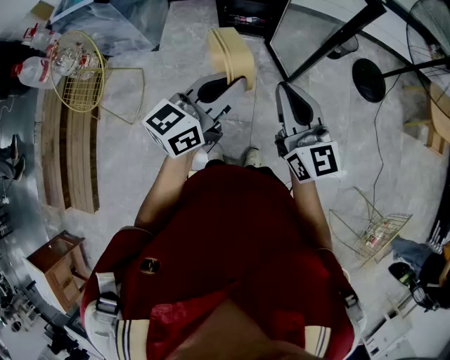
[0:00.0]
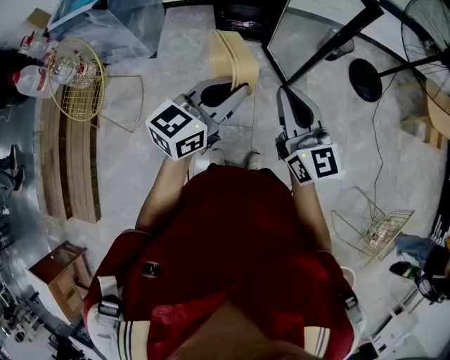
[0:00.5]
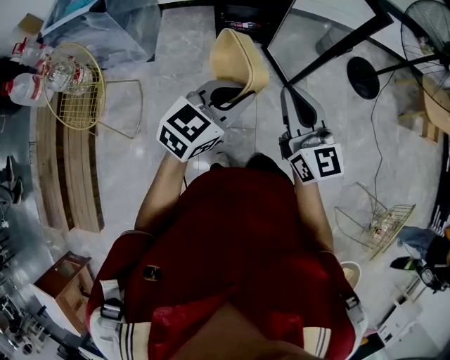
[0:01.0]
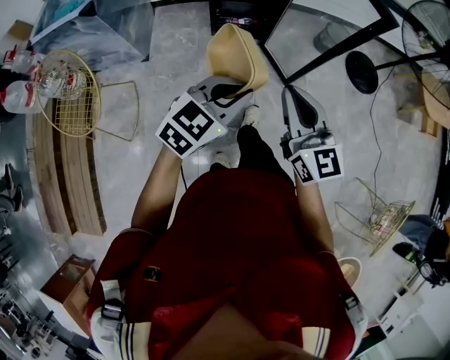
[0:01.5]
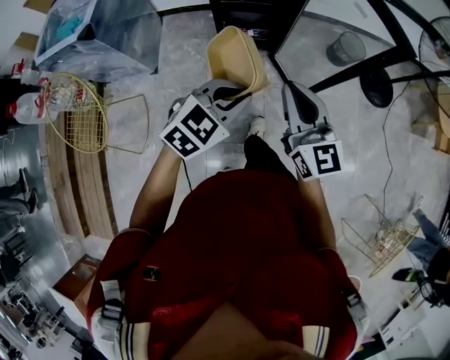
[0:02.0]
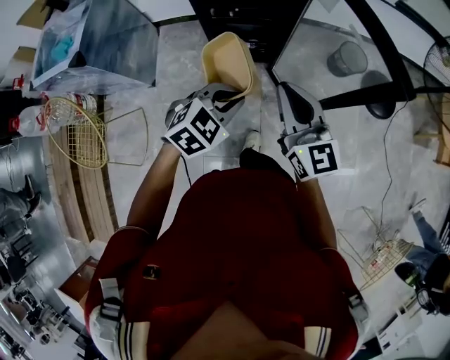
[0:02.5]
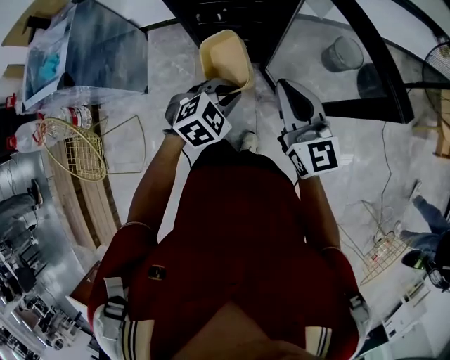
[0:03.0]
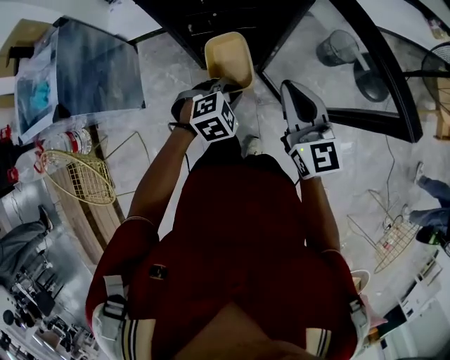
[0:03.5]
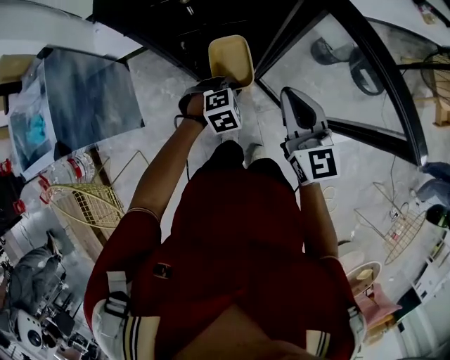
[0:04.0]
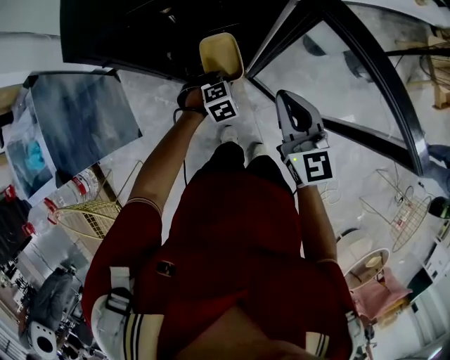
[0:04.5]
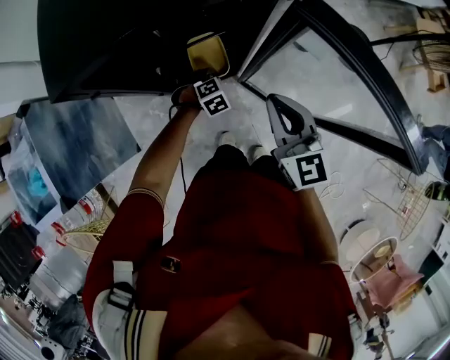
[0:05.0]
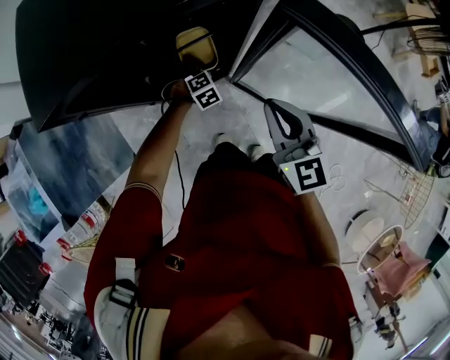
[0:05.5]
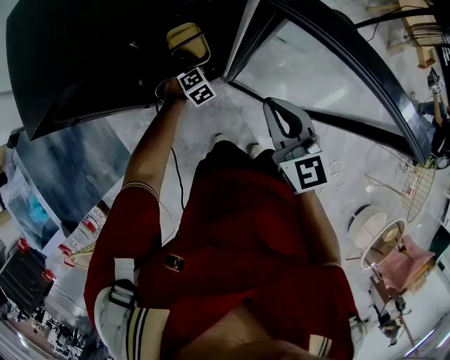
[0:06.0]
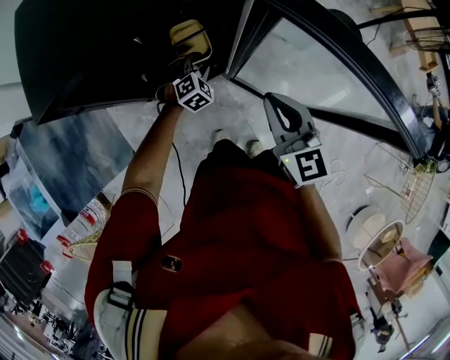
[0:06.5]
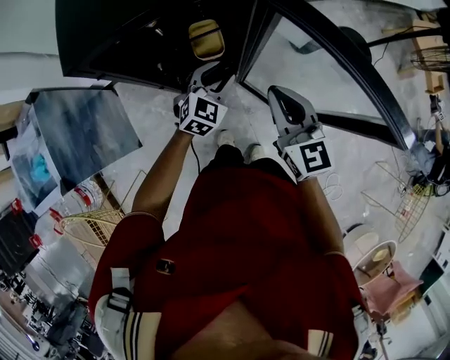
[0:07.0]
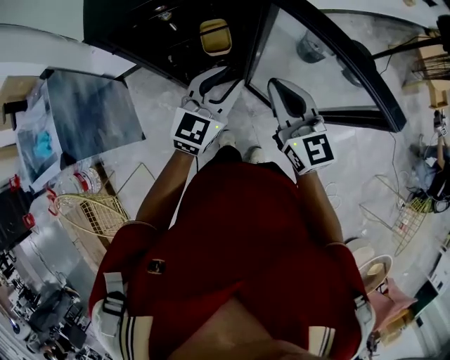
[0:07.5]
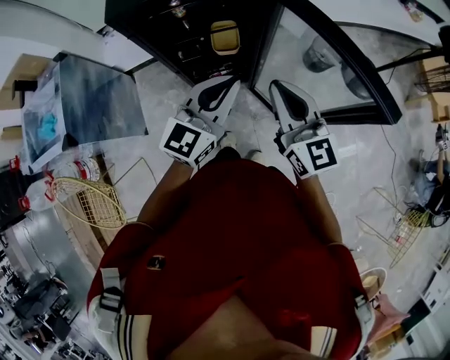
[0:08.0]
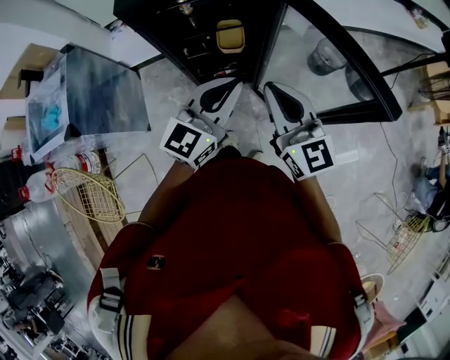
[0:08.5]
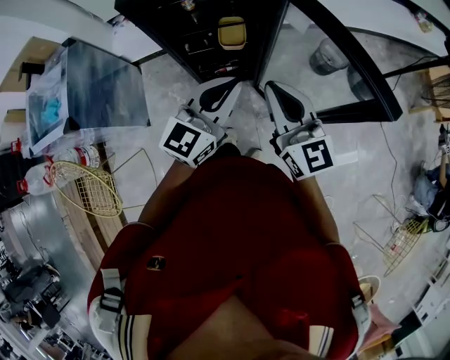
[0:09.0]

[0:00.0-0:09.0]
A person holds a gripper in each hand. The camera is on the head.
0:00.0 to 0:02.0: The right gripper shifts roughly 20 cm forward and to the left, while the left gripper goes about 20 cm forward and downward, and angles its fingers downward, by roughly 30 degrees.
0:02.0 to 0:04.5: The left gripper shifts roughly 50 cm forward and downward, and tilts its fingers approximately 30 degrees downward; the right gripper heads forward, covering approximately 35 cm, and turns by some 20 degrees.
0:04.5 to 0:07.0: The left gripper heads upward, covering some 15 cm, tilts its fingers approximately 40 degrees upward, and opens.
0:07.0 to 0:09.0: The right gripper heads backward and upward, covering roughly 15 cm, while the left gripper moves upward and backward, roughly 25 cm, turns by some 30 degrees, and closes up.

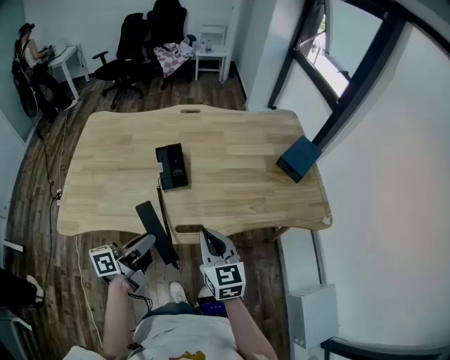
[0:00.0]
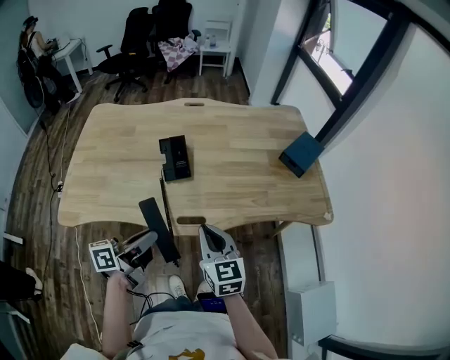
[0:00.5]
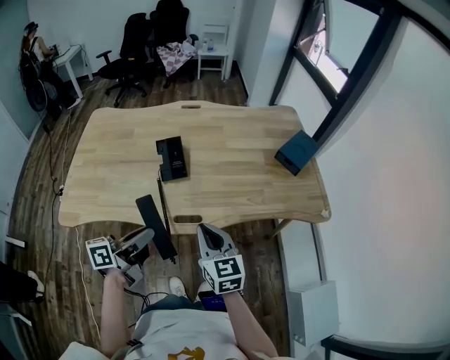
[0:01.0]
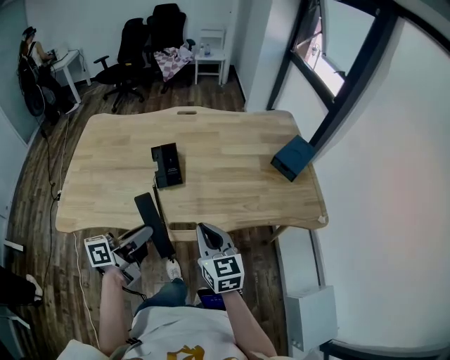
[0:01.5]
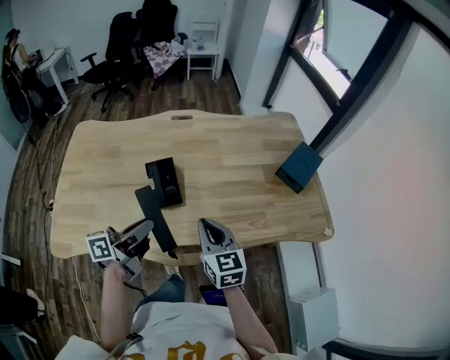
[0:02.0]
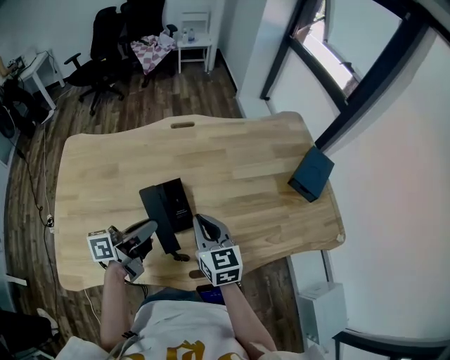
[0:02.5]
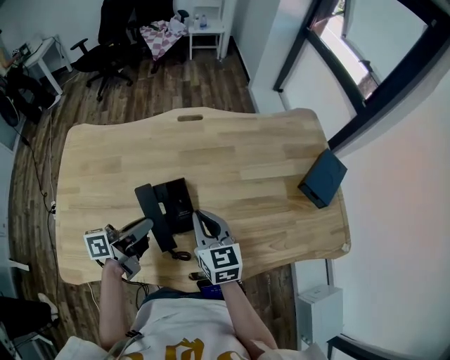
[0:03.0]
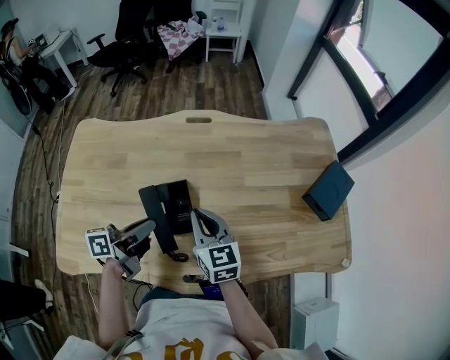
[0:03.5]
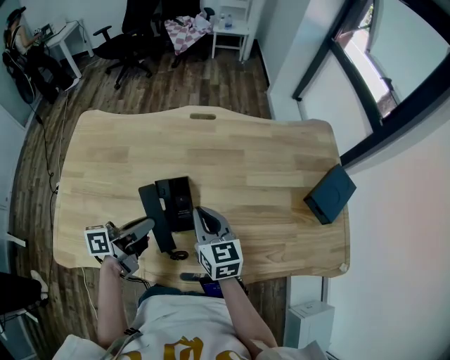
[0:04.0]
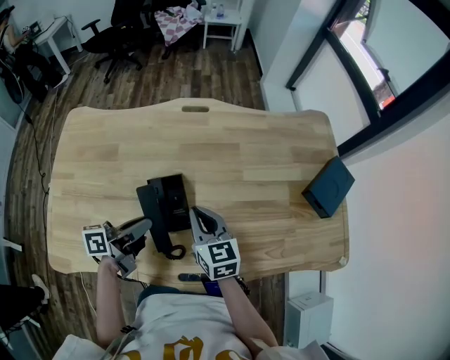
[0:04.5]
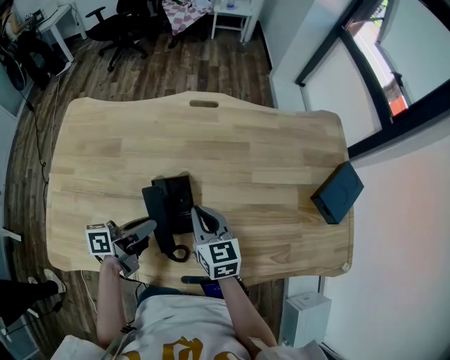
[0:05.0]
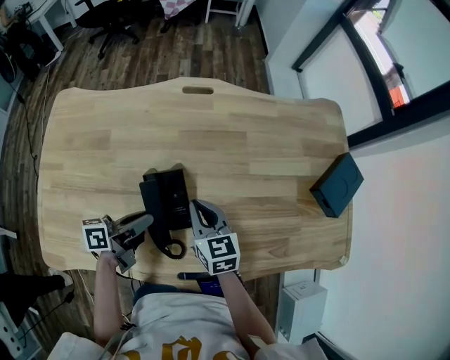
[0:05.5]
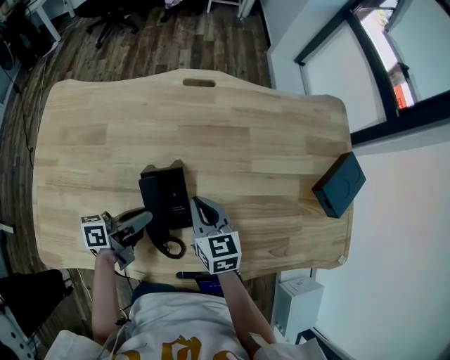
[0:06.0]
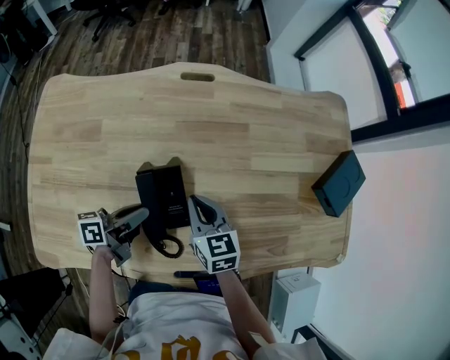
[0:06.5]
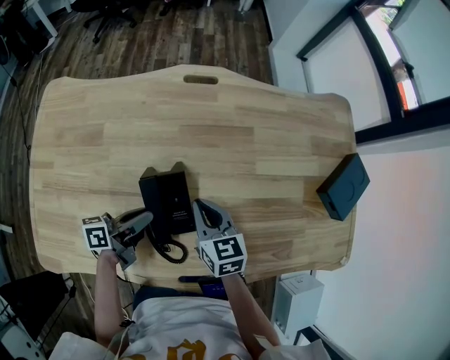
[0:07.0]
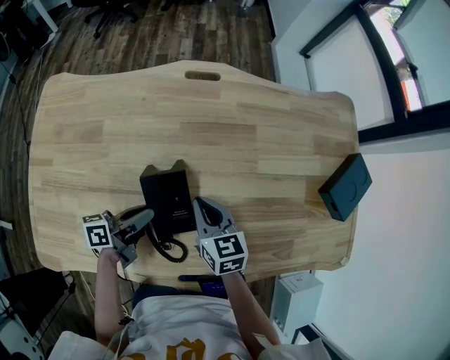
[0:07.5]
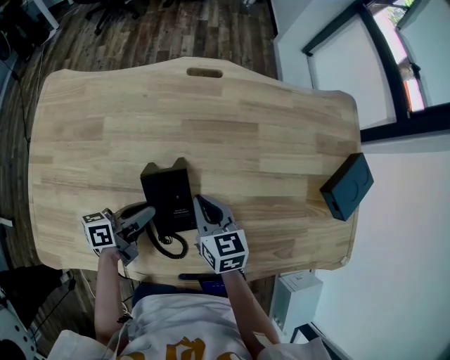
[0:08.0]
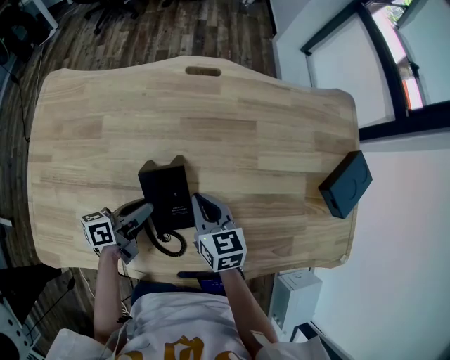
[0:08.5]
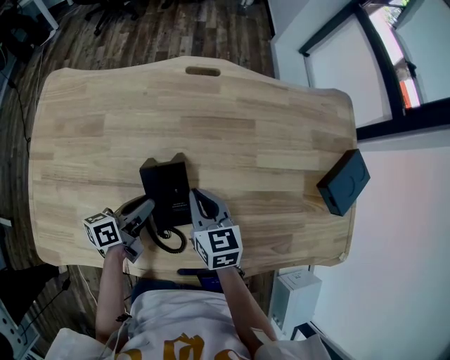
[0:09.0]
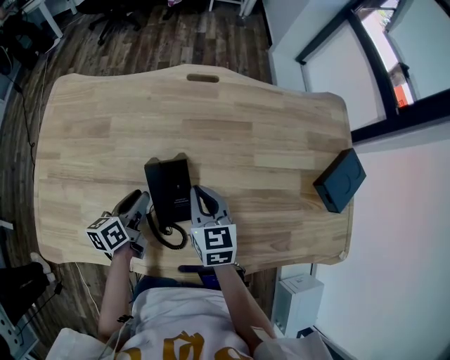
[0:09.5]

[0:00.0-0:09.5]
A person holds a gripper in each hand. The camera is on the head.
0:00.0 to 0:02.0: The grippers both shift forward by some 15 cm.
0:02.0 to 0:04.0: The two grippers go about 15 cm forward and to the left.
0:04.0 to 0:05.5: The two grippers go some 10 cm downward.
0:05.5 to 0:07.5: The left gripper goes roughly 5 cm downward.
0:07.5 to 0:09.5: The left gripper changes its angle by about 30 degrees.

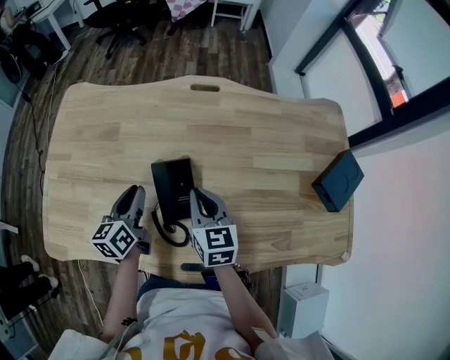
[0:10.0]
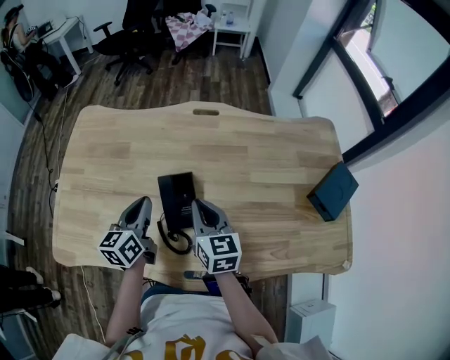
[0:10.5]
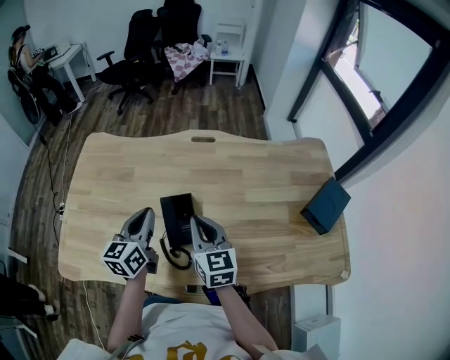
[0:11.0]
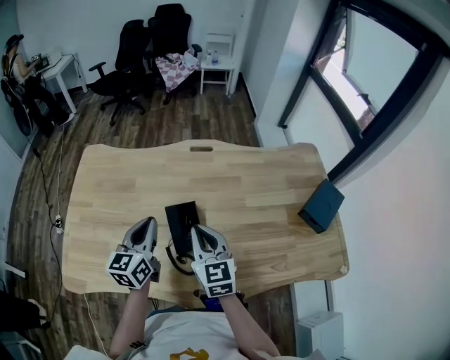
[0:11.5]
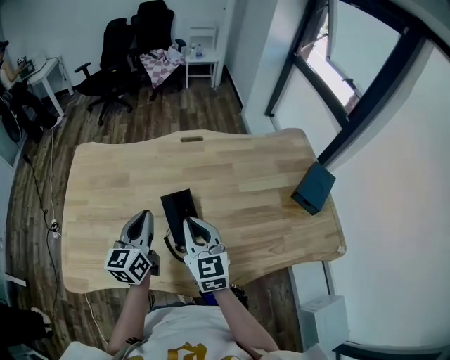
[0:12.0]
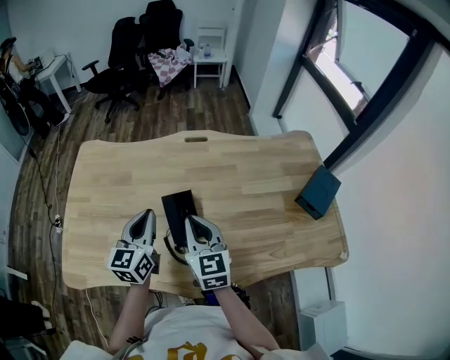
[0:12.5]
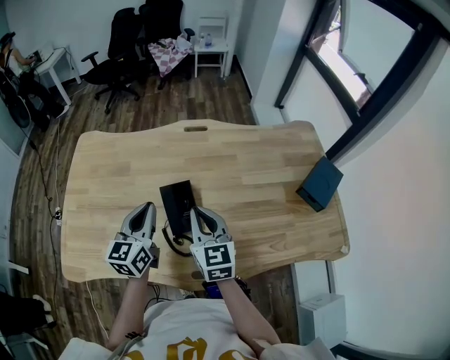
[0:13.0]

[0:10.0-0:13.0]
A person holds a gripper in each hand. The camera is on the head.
0:10.0 to 0:11.5: Both grippers move upward, approximately 10 cm. The left gripper changes its angle by approximately 20 degrees, and closes up.
0:11.5 to 0:13.0: There are only small adjustments of the grippers.

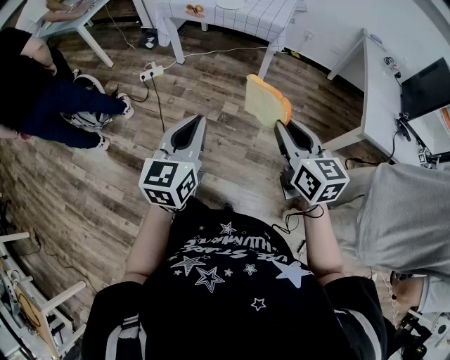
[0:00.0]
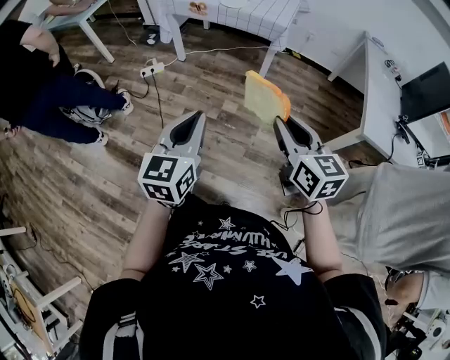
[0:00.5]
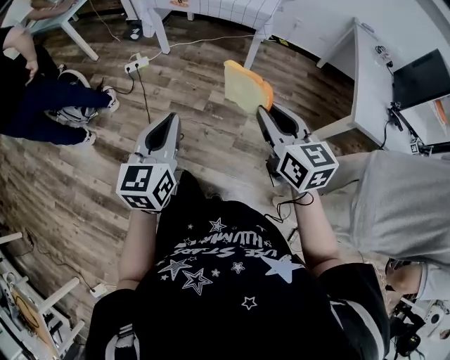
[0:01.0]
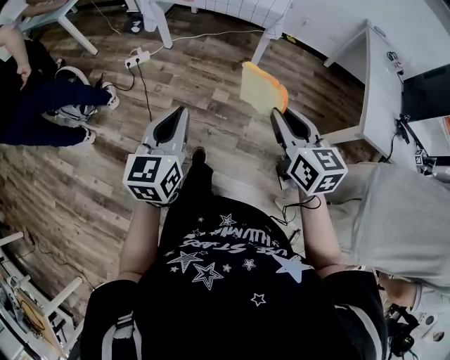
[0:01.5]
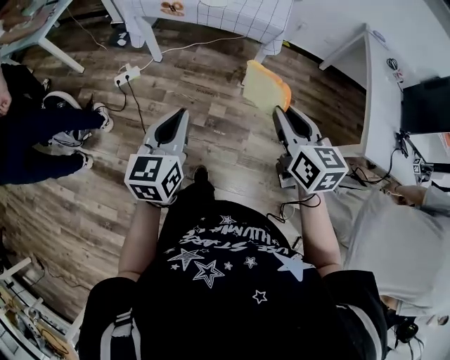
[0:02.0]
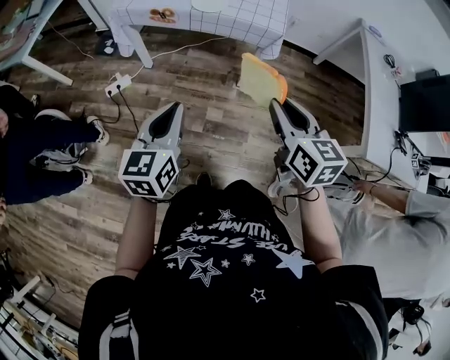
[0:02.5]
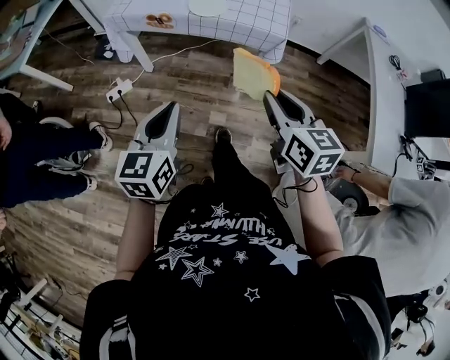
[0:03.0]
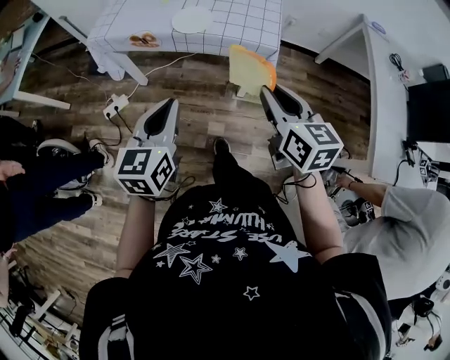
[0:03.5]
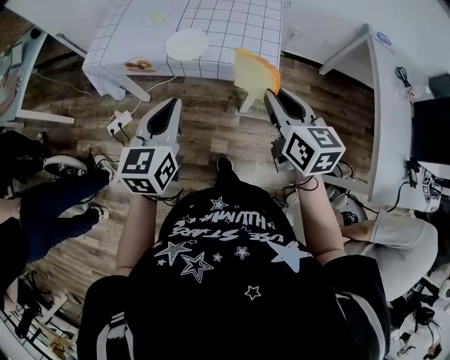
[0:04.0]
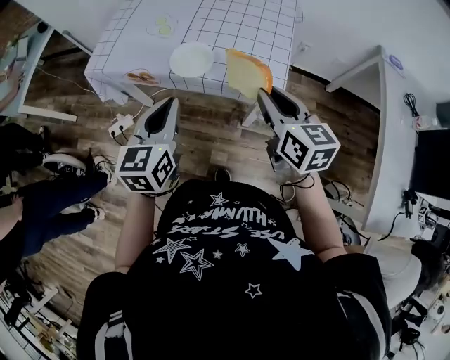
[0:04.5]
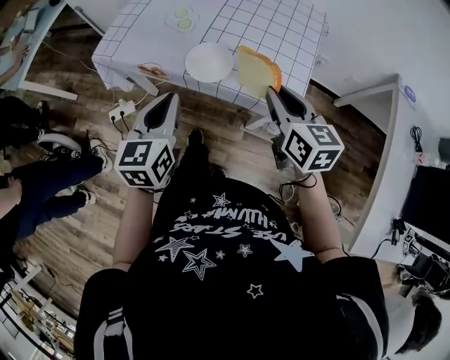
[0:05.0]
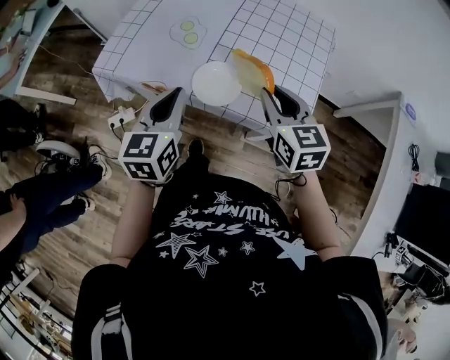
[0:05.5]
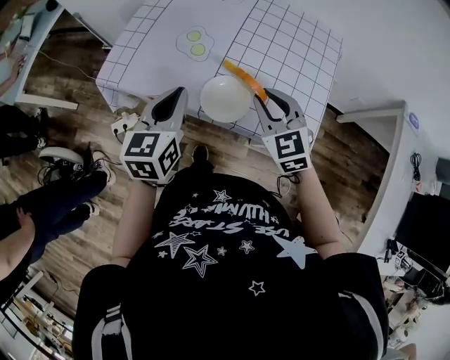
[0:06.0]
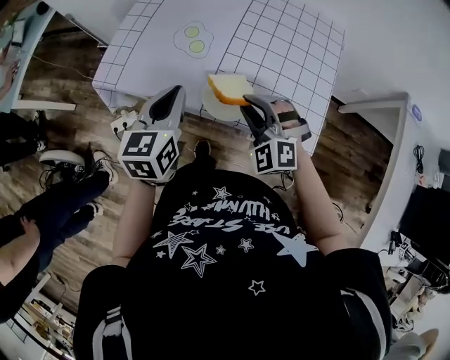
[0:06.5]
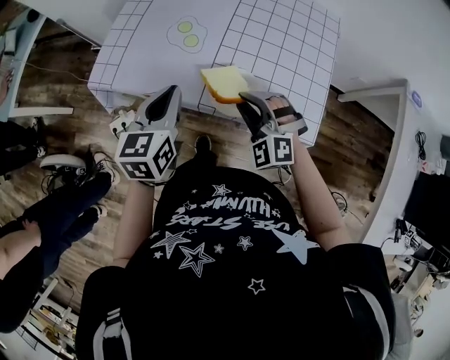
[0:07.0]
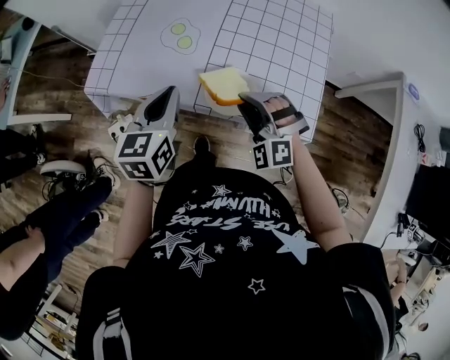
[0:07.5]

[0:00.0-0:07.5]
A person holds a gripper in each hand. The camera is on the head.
0:00.0 to 0:02.0: Both grippers move forward, approximately 20 cm.
0:02.0 to 0:04.0: Both grippers move forward, about 35 cm.
0:04.0 to 0:05.5: The two grippers go roughly 20 cm forward. The right gripper changes its angle by roughly 20 degrees.
0:05.5 to 0:07.5: The right gripper travels downward and to the left by roughly 15 cm, and rolls counterclockwise, seen from behind, by approximately 70 degrees. Meanwhile the left gripper shifts about 5 cm forward.
